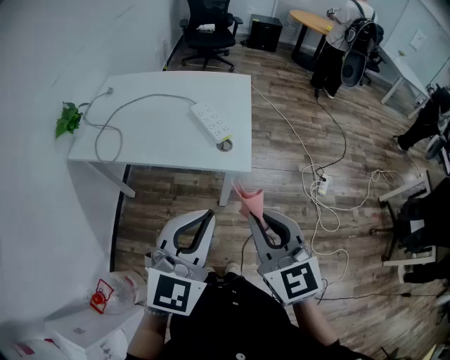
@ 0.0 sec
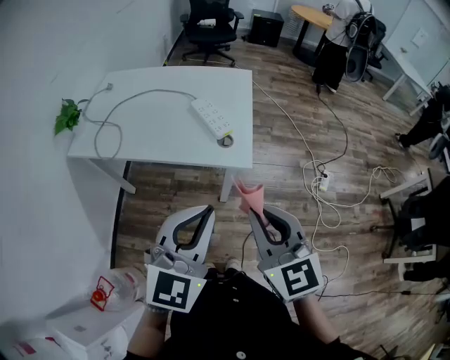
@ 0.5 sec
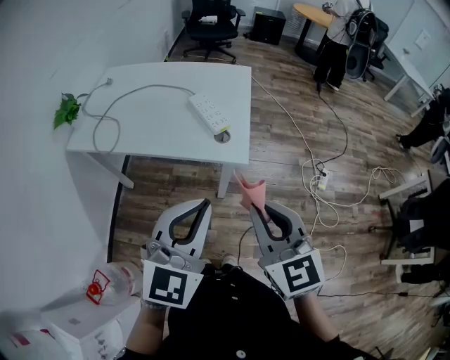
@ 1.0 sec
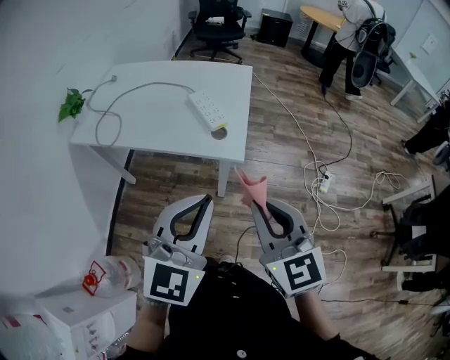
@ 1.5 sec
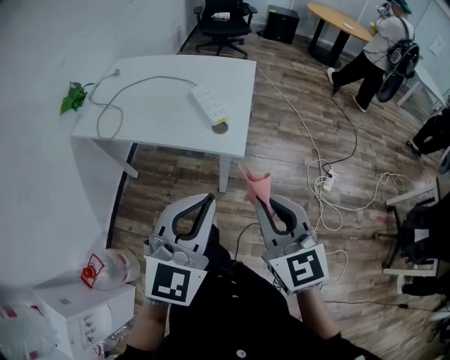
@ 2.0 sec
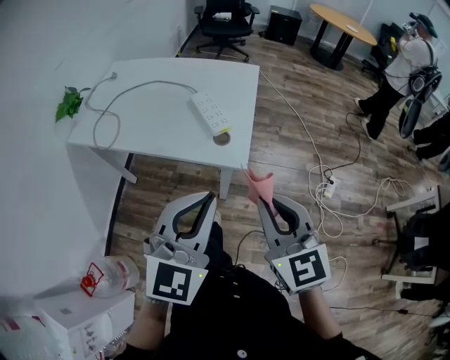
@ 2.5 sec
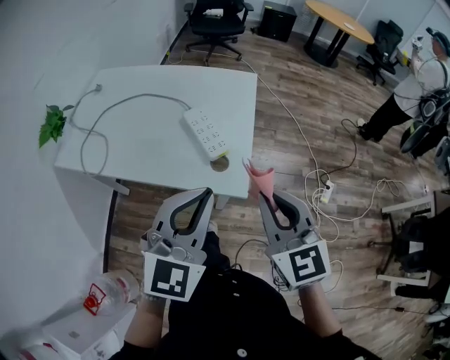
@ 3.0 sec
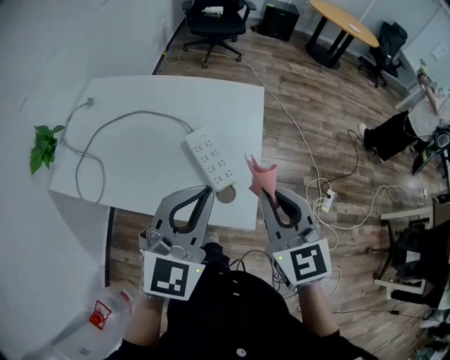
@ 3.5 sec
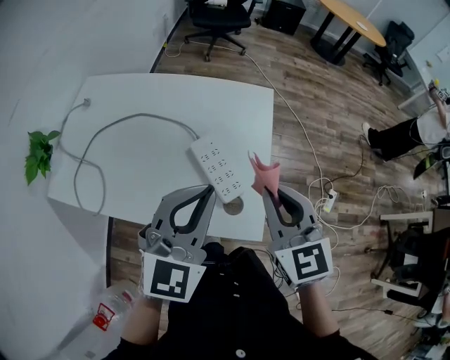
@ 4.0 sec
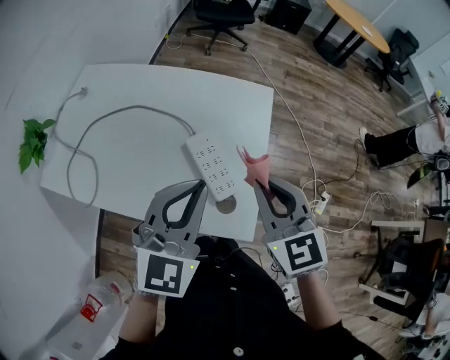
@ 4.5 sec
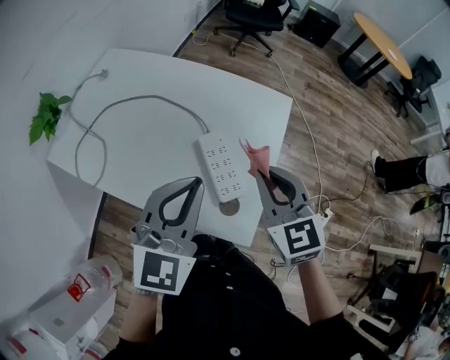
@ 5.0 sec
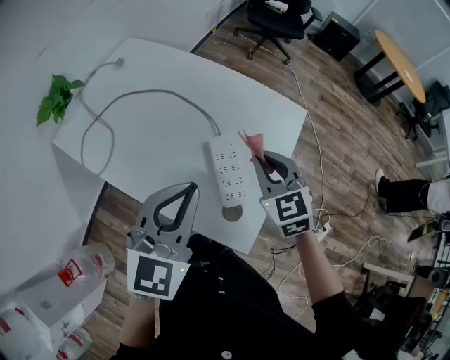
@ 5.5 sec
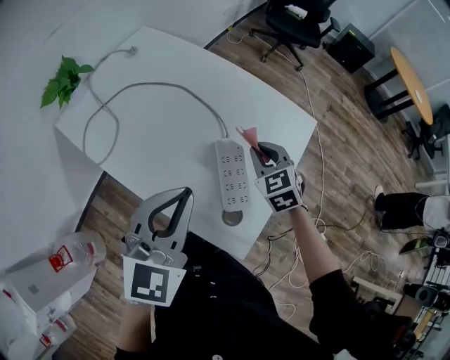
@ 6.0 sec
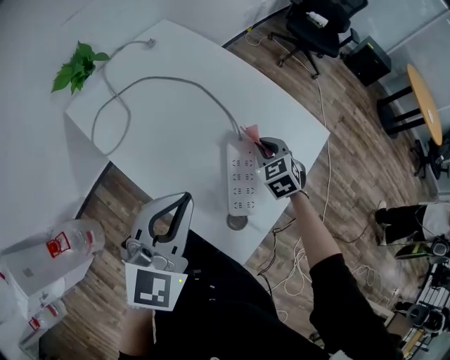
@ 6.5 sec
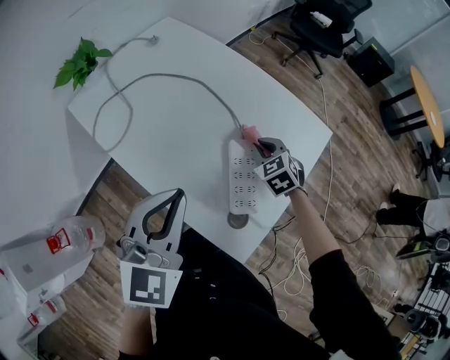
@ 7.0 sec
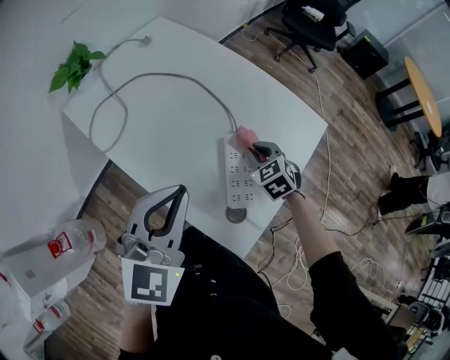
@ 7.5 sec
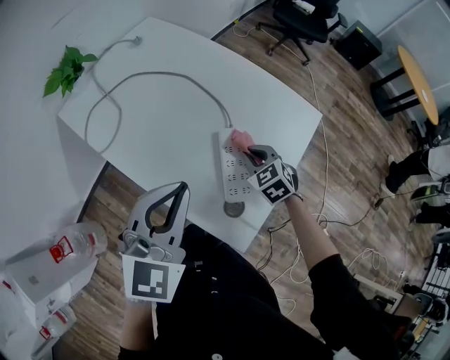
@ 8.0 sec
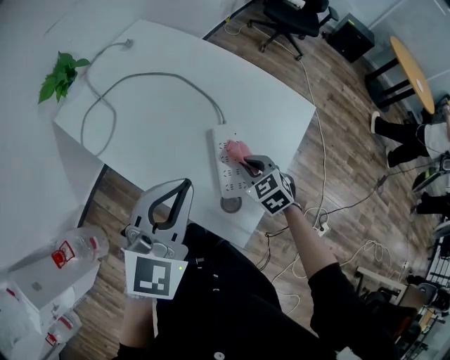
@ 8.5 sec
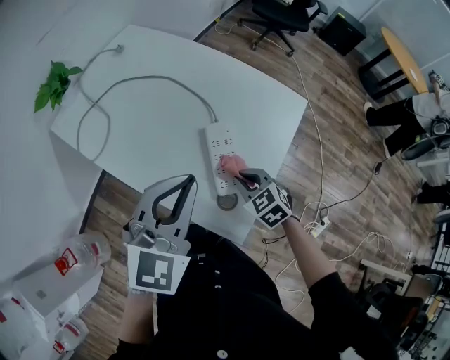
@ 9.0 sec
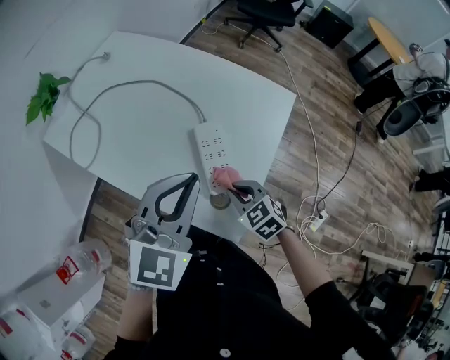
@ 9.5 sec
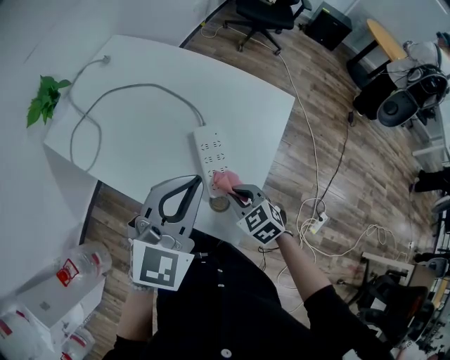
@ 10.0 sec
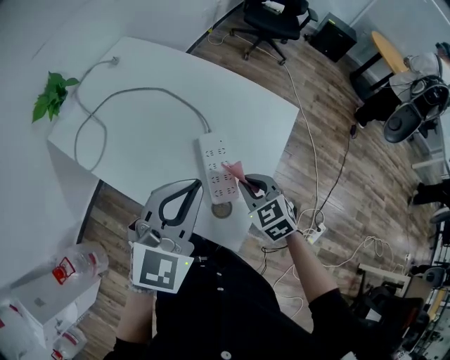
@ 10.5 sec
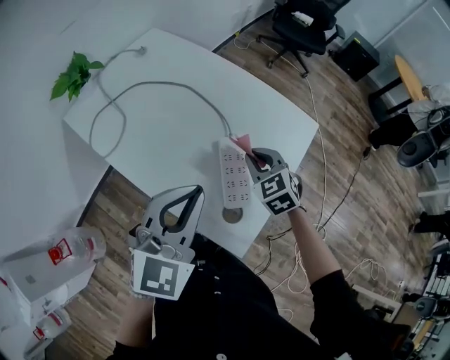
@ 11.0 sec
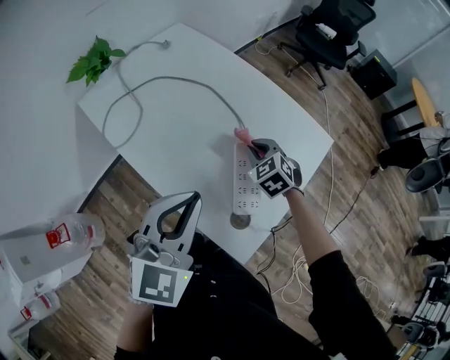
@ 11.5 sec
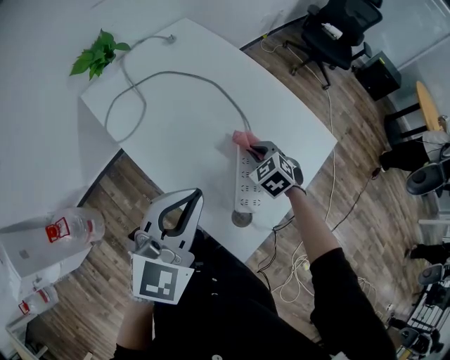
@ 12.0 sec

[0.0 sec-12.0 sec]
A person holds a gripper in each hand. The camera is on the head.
0.0 sec to 2.0 sec: The grippers both shift to the right by approximately 10 cm.
2.0 sec to 4.0 sec: The pair of grippers is taken forward, about 40 cm.
4.0 sec to 6.0 sec: The right gripper goes approximately 25 cm forward and downward, and rotates some 40 degrees, while the left gripper travels to the left by some 5 cm, and swivels some 30 degrees.
6.0 sec to 8.0 sec: The right gripper moves downward, roughly 10 cm.
8.0 sec to 10.0 sec: The left gripper travels to the right by some 10 cm. Meanwhile the right gripper shifts roughly 15 cm backward.
10.0 sec to 12.0 sec: The left gripper shifts some 10 cm to the left. Meanwhile the right gripper shifts some 20 cm forward, and rotates roughly 20 degrees.

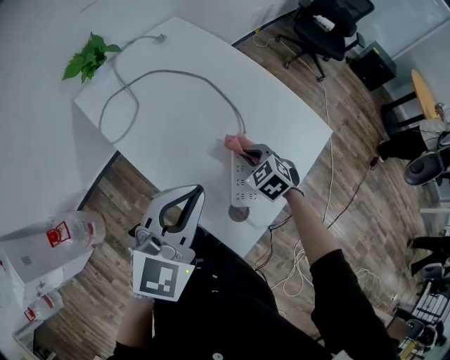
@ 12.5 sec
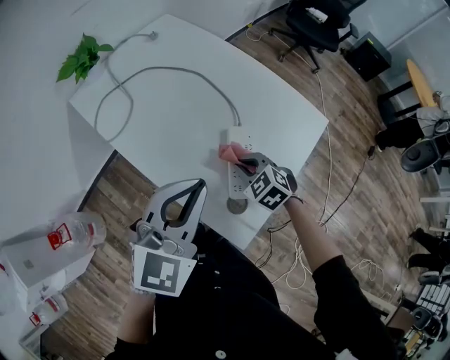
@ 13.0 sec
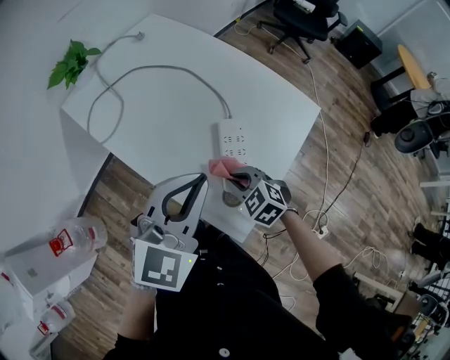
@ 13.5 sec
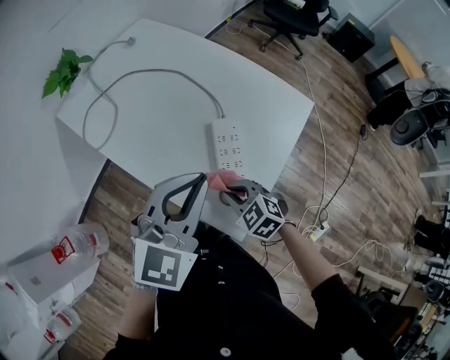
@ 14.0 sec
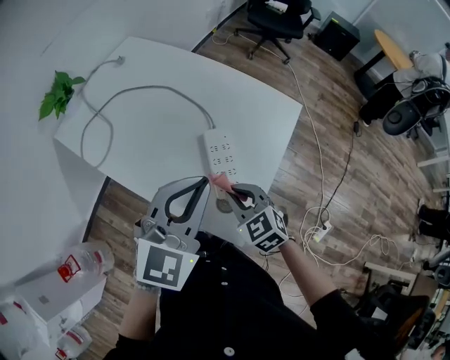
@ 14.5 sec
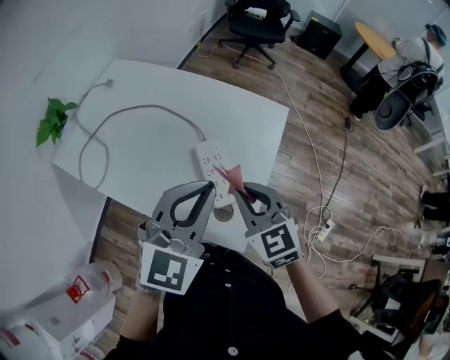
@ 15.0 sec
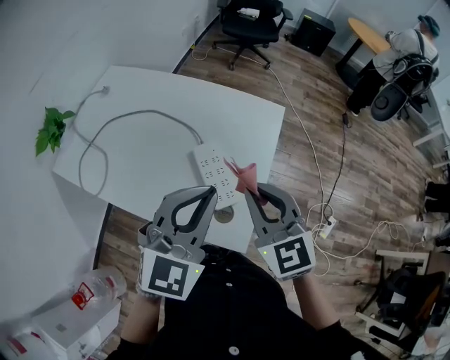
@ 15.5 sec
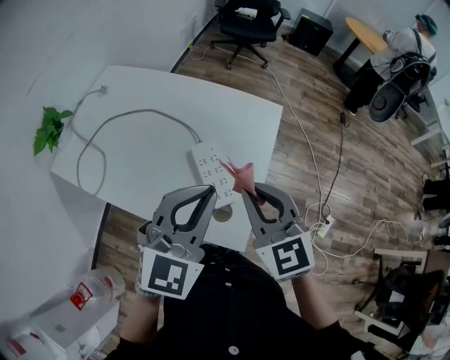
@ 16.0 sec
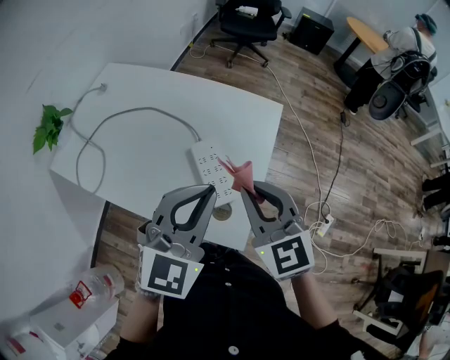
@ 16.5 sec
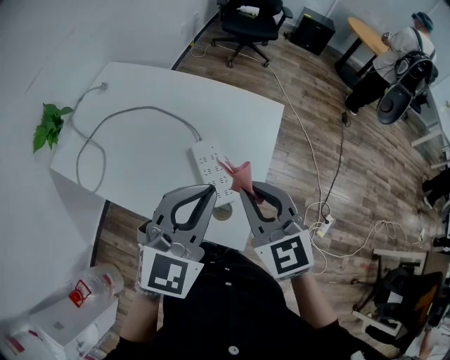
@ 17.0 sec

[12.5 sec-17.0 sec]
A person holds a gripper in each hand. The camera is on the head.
12.5 sec to 14.5 sec: The left gripper travels to the right by roughly 5 cm, while the right gripper travels backward and upward by roughly 15 cm, and swivels about 20 degrees.
14.5 sec to 17.0 sec: The right gripper moves upward, some 15 cm, and rotates some 30 degrees.

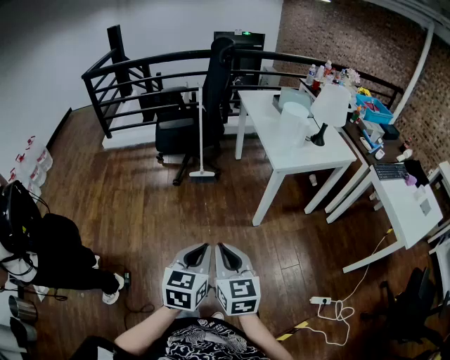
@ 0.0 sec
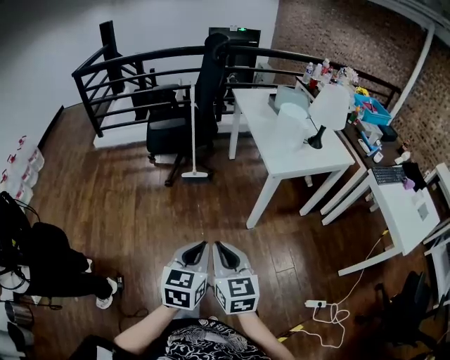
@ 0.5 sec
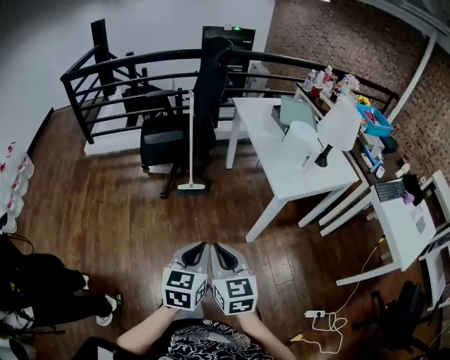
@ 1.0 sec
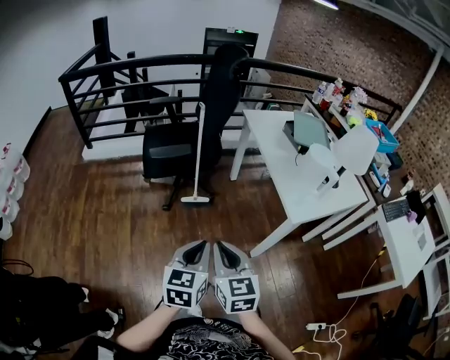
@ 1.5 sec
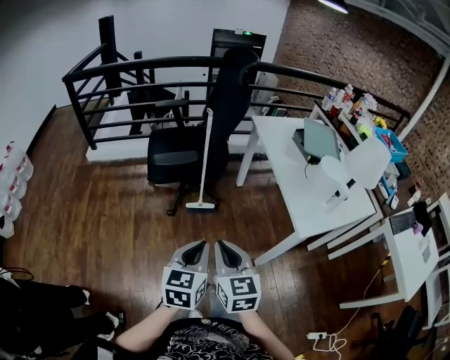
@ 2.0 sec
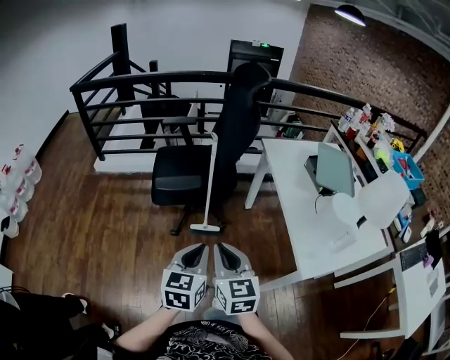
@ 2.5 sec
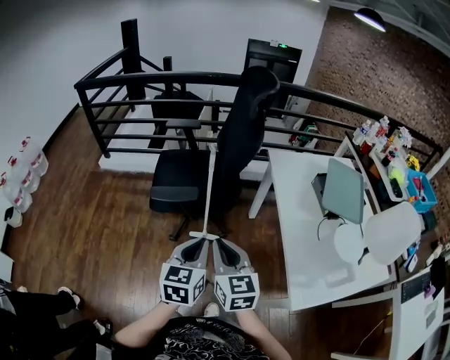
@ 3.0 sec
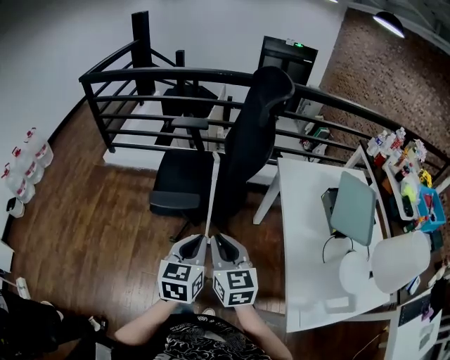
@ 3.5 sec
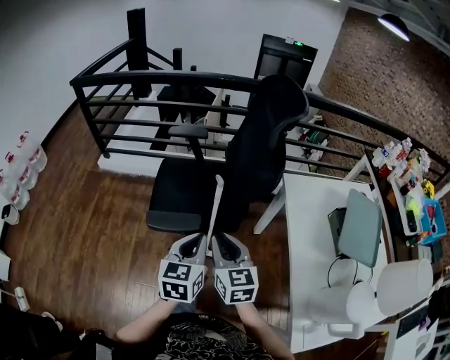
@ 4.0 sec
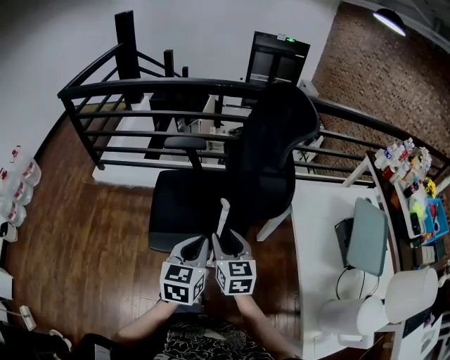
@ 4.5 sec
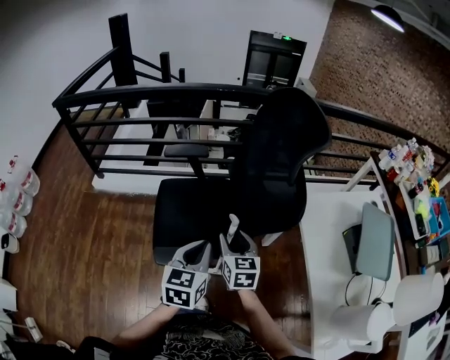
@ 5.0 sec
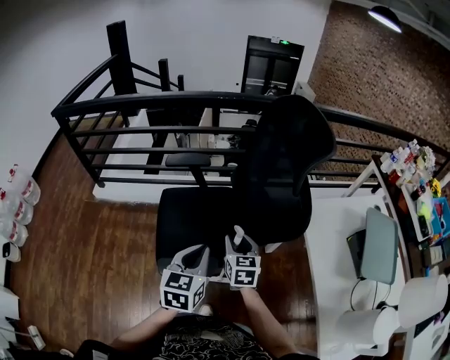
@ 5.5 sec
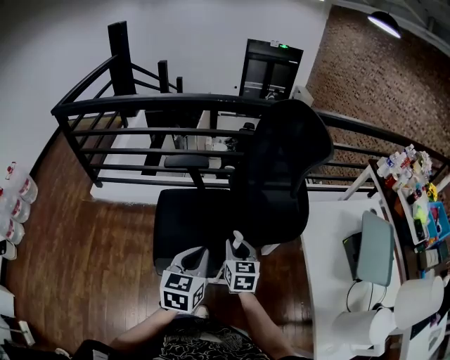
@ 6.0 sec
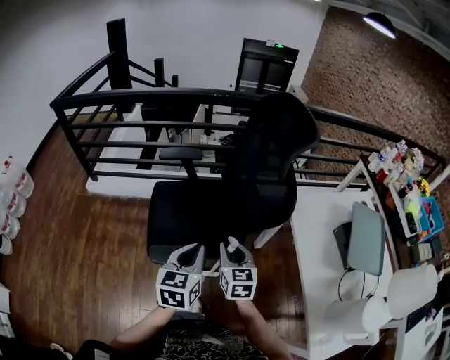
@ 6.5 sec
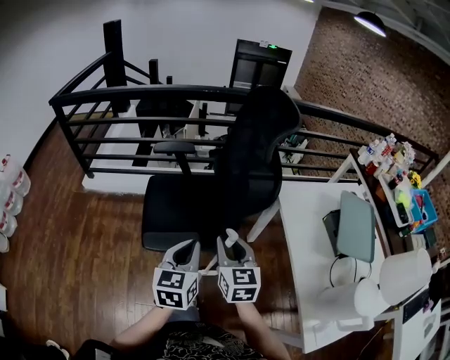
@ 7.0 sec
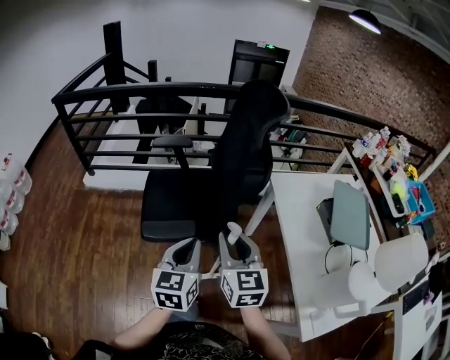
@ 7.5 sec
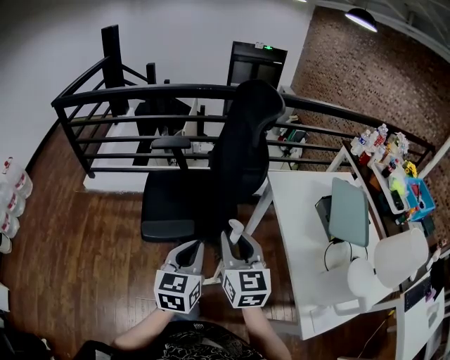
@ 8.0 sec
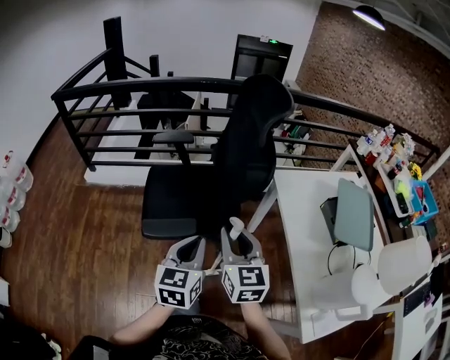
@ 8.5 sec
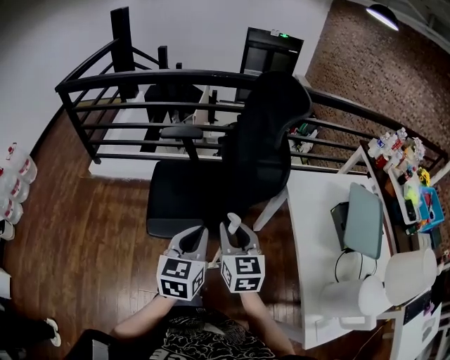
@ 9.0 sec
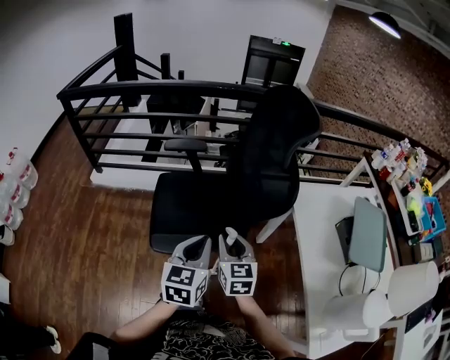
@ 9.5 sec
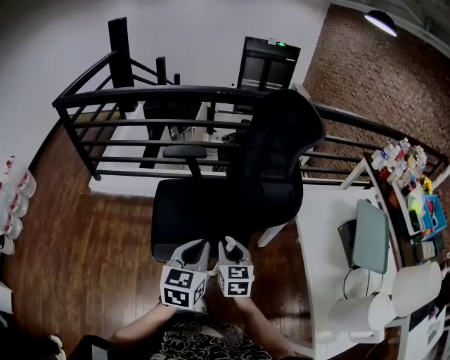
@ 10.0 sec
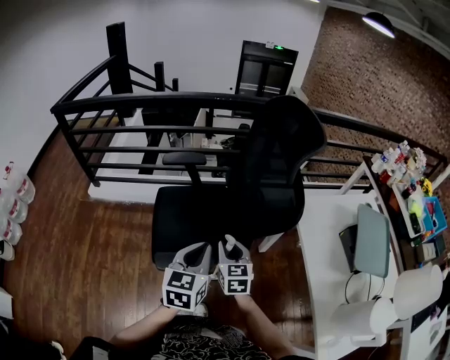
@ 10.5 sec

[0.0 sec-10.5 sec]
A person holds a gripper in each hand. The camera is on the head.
0.0 sec to 2.0 sec: The two grippers go roughly 35 cm forward.
2.0 sec to 4.0 sec: The two grippers travel together, forward, about 40 cm.
4.0 sec to 6.5 sec: The left gripper goes some 10 cm forward and to the left; the right gripper goes some 15 cm forward and downward, and opens and closes again.
6.5 sec to 8.5 sec: The right gripper is displaced upward and backward by approximately 15 cm. Meanwhile the left gripper moves backward and to the right, some 10 cm.
8.5 sec to 10.5 sec: The right gripper heads forward, downward and to the left, covering some 20 cm. Meanwhile the left gripper shifts about 15 cm forward and to the left.
